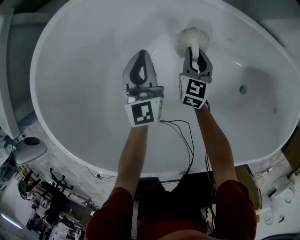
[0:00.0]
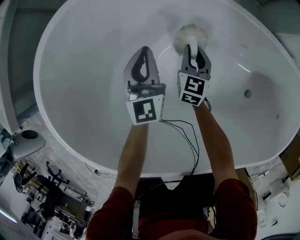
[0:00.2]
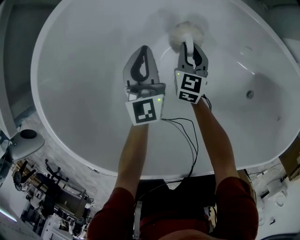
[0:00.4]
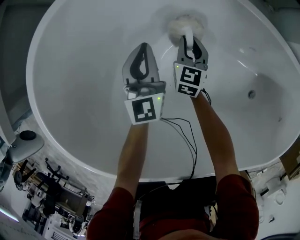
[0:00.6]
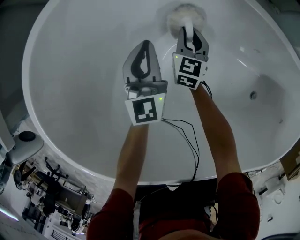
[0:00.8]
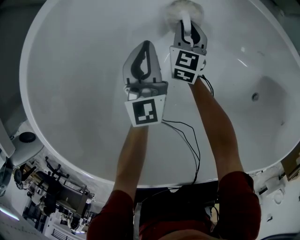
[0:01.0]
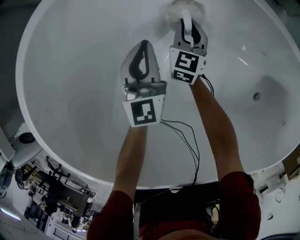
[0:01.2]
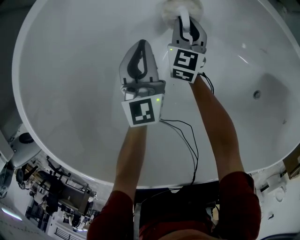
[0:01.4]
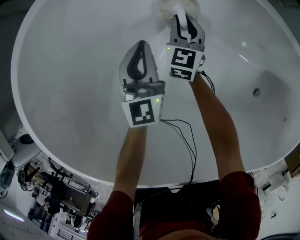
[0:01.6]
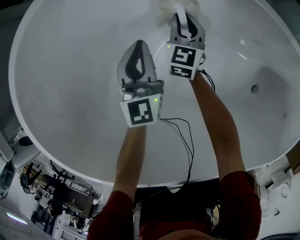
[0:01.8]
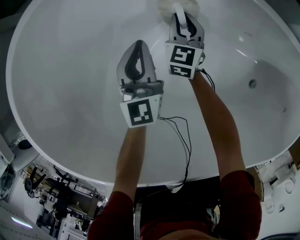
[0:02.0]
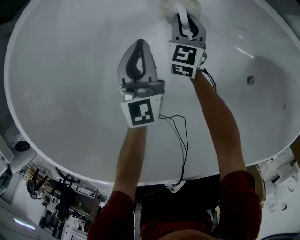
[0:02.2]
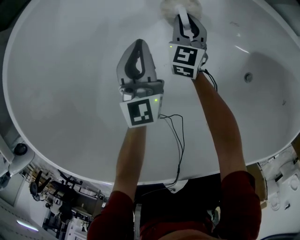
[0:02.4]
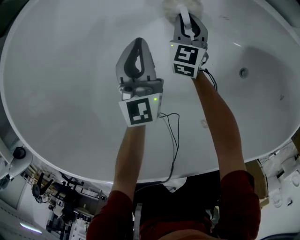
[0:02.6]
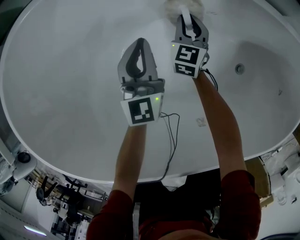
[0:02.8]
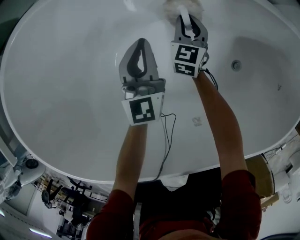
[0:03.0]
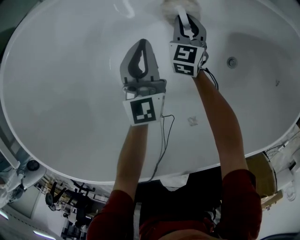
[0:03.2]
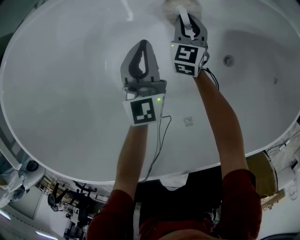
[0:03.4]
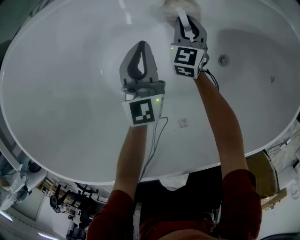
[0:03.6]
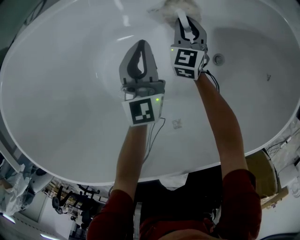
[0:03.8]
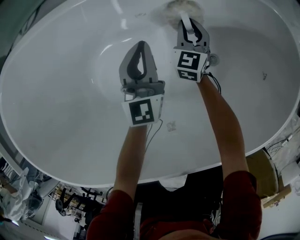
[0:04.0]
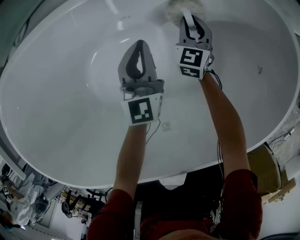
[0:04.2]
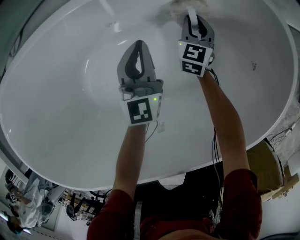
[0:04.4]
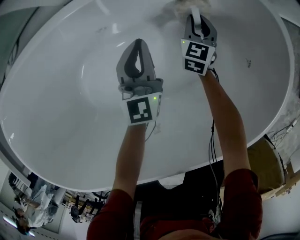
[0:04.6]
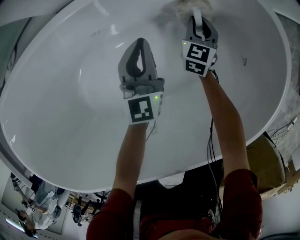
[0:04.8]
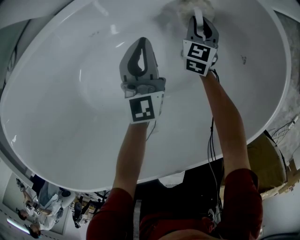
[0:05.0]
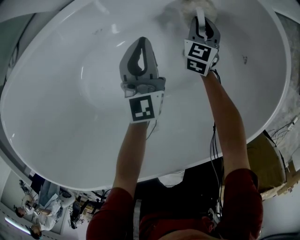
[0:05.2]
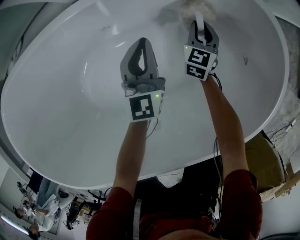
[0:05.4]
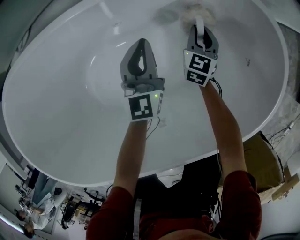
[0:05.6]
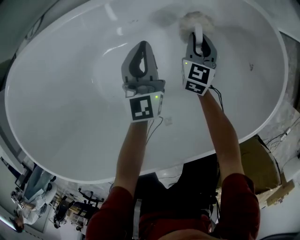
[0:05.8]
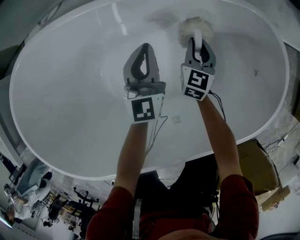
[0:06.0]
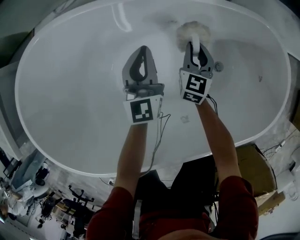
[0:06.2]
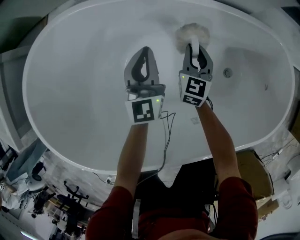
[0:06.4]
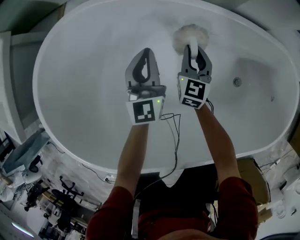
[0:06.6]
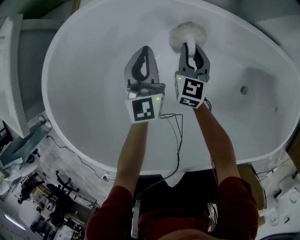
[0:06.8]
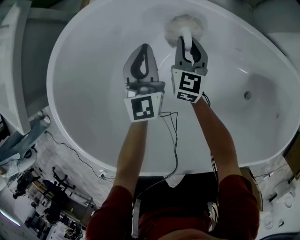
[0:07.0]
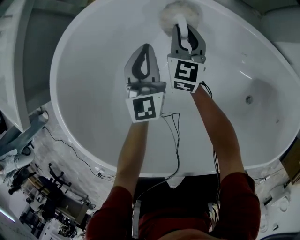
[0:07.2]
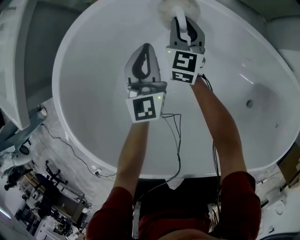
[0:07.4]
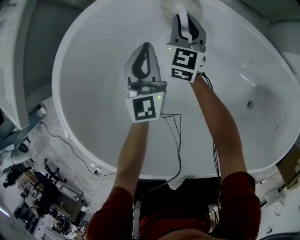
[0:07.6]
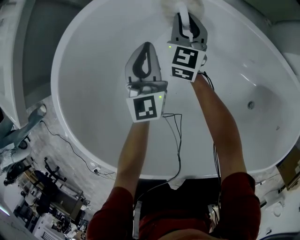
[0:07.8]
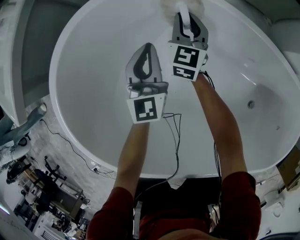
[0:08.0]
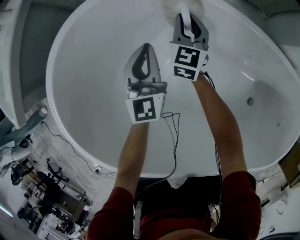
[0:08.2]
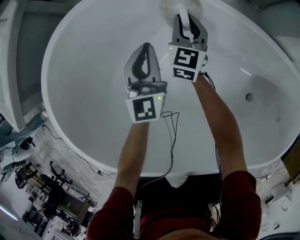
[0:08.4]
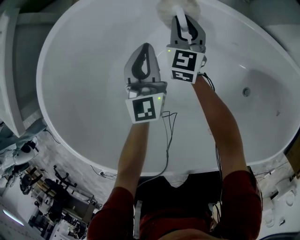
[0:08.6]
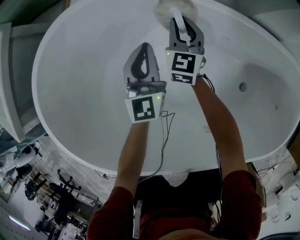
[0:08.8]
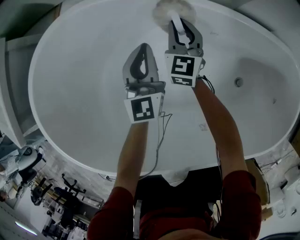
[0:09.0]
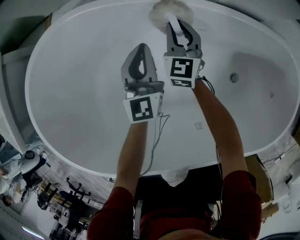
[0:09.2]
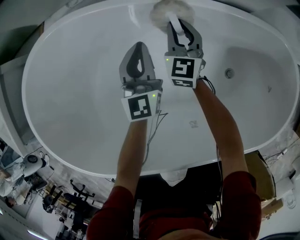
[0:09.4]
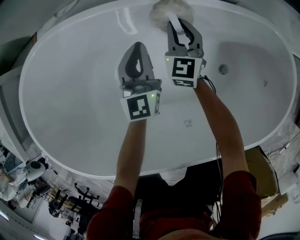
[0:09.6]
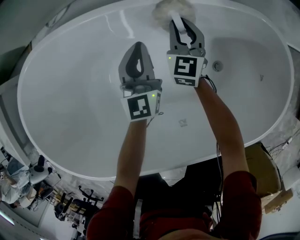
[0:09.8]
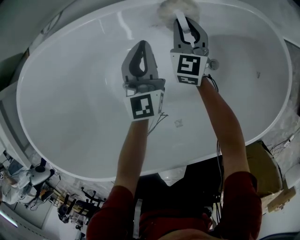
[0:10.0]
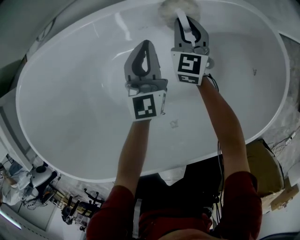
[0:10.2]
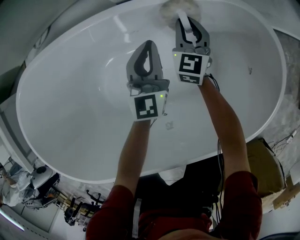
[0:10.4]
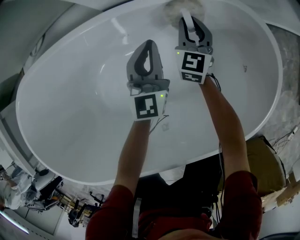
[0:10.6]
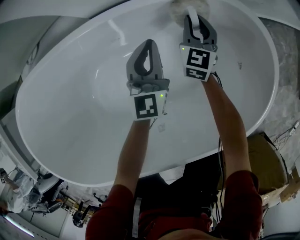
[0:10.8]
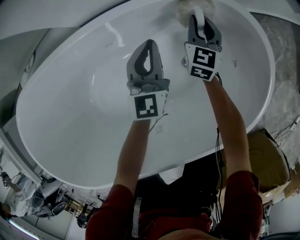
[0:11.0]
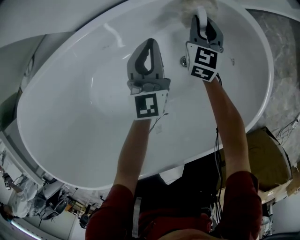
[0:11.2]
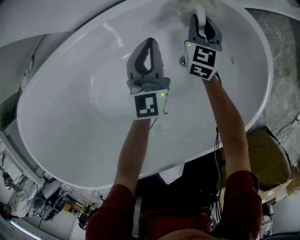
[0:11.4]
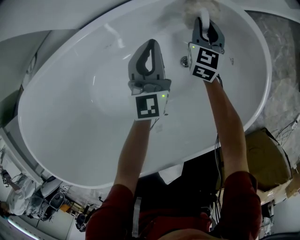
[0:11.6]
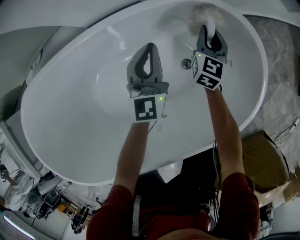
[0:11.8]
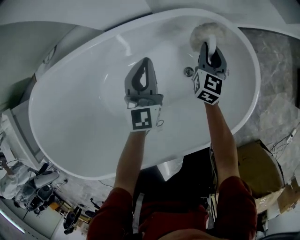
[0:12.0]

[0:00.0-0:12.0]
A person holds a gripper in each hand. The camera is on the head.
0.0 to 1.6 s: The right gripper shifts about 20 cm to the left, forward and downward. Meanwhile the left gripper travels downward and to the left by about 10 cm.
1.6 to 3.0 s: The grippers both shift to the right by some 30 cm.
3.0 to 4.4 s: The two grippers go about 30 cm to the right.
4.4 to 6.0 s: The left gripper travels to the left, upward and backward by about 20 cm. The right gripper shifts some 20 cm upward, to the left and backward.
6.0 to 7.6 s: The two grippers travel together, some 50 cm. The left gripper changes its angle by about 30 degrees, while the right gripper swivels about 30 degrees.
7.6 to 9.0 s: The two grippers go approximately 25 cm to the right.
9.0 to 10.4 s: The two grippers go some 40 cm to the right.
10.4 to 12.0 s: The right gripper travels to the right by about 20 cm, and rotates about 20 degrees. Meanwhile the left gripper travels to the right and upward by about 15 cm.

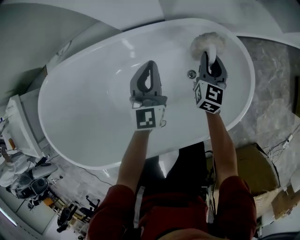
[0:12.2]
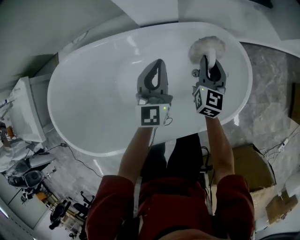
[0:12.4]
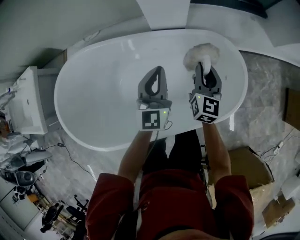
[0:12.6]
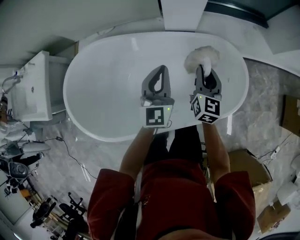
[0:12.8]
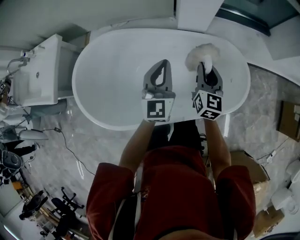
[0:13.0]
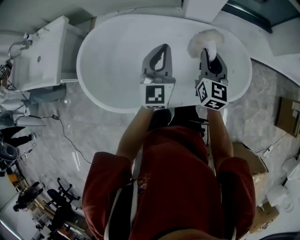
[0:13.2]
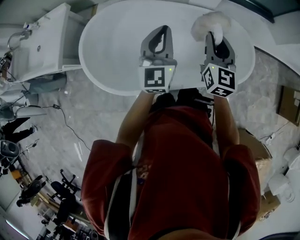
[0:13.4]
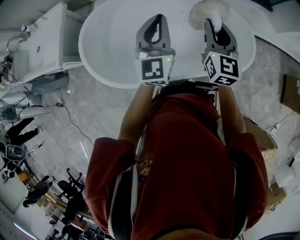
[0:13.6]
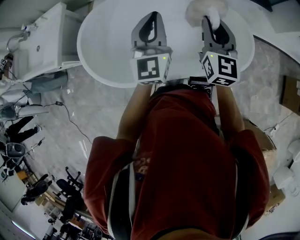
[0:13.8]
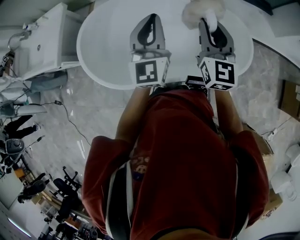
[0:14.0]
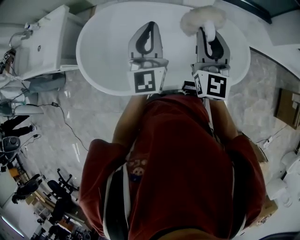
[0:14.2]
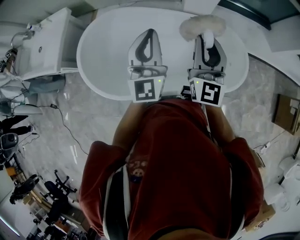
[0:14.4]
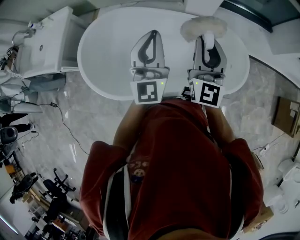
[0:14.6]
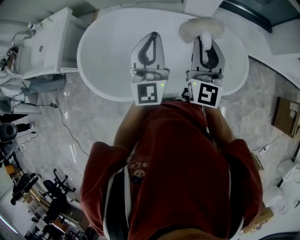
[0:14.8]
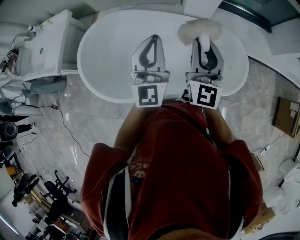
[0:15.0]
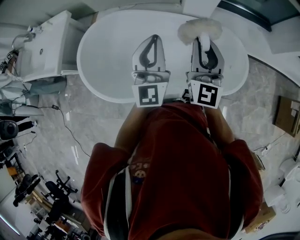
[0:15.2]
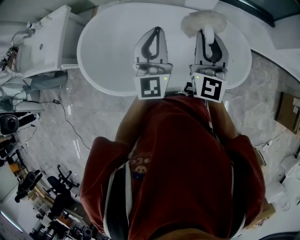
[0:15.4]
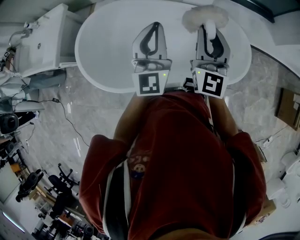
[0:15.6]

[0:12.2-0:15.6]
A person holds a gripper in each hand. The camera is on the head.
12.2 to 13.8 s: Both grippers are carried backward and to the left, approximately 40 cm. The two grippers go approximately 40 cm upward. The right gripper turns by about 30 degrees.
13.8 to 15.6 s: There are only small adjustments of the grippers.

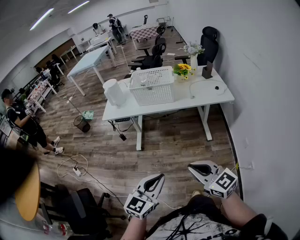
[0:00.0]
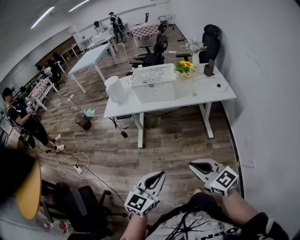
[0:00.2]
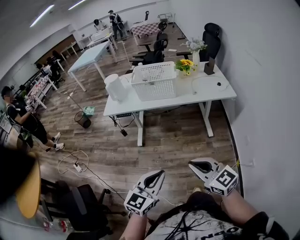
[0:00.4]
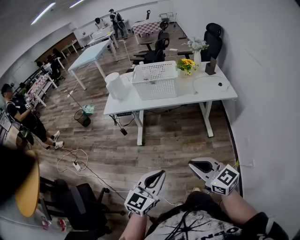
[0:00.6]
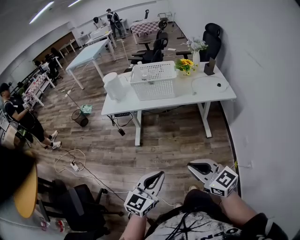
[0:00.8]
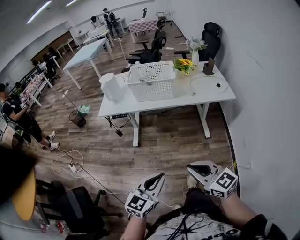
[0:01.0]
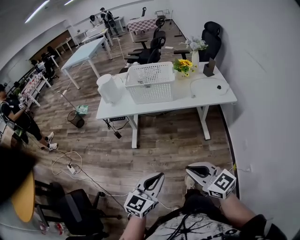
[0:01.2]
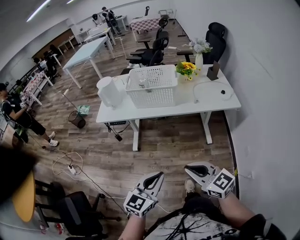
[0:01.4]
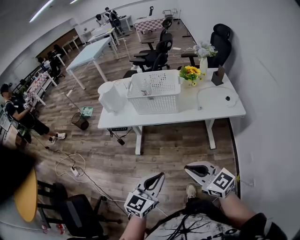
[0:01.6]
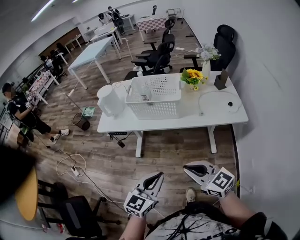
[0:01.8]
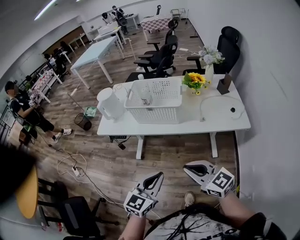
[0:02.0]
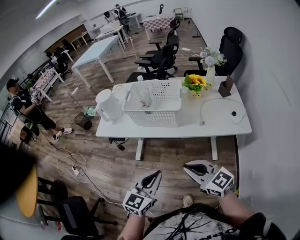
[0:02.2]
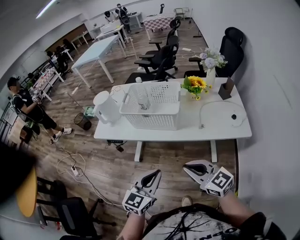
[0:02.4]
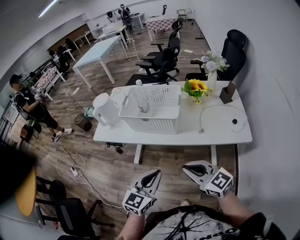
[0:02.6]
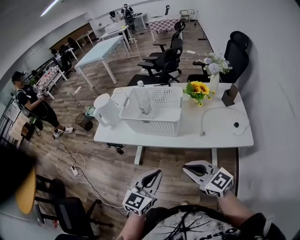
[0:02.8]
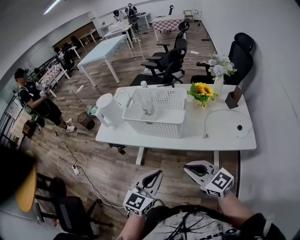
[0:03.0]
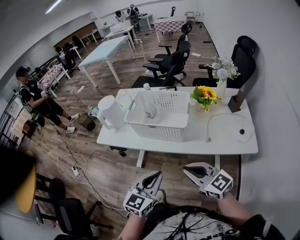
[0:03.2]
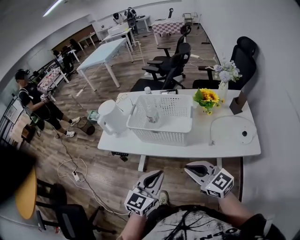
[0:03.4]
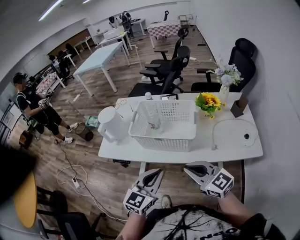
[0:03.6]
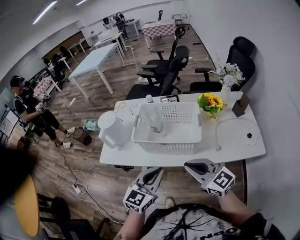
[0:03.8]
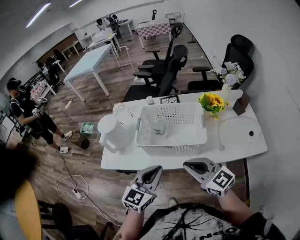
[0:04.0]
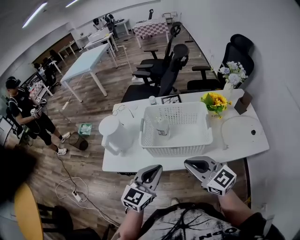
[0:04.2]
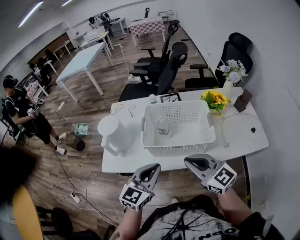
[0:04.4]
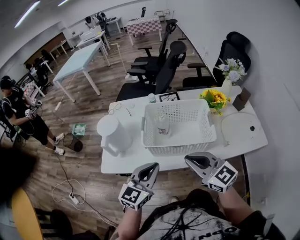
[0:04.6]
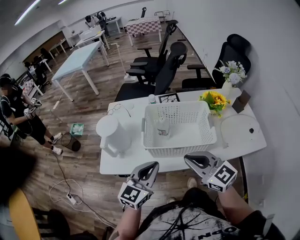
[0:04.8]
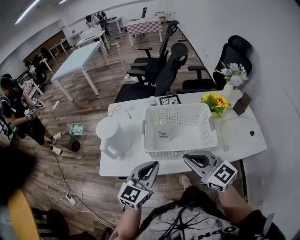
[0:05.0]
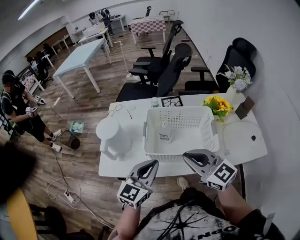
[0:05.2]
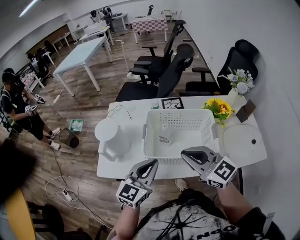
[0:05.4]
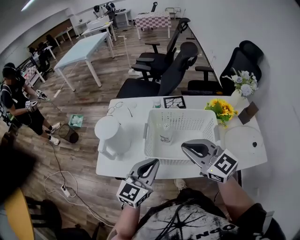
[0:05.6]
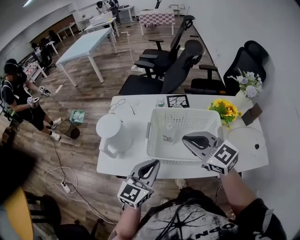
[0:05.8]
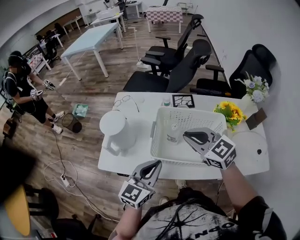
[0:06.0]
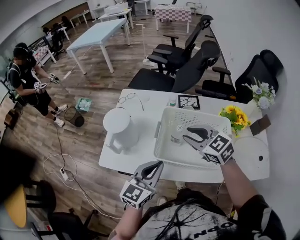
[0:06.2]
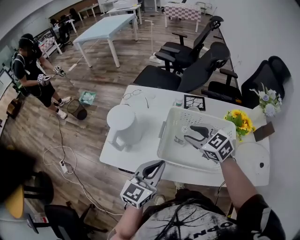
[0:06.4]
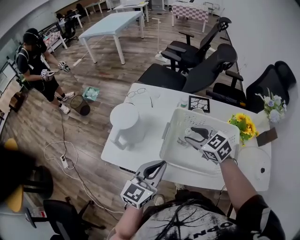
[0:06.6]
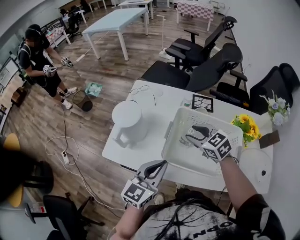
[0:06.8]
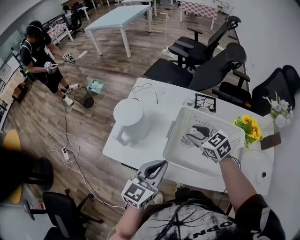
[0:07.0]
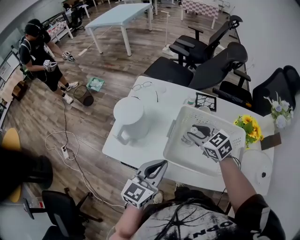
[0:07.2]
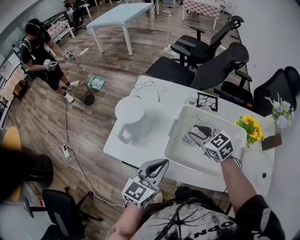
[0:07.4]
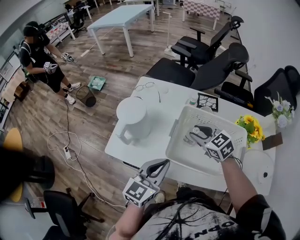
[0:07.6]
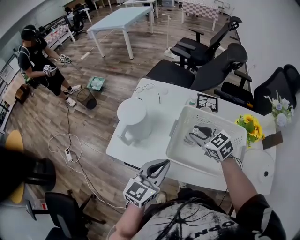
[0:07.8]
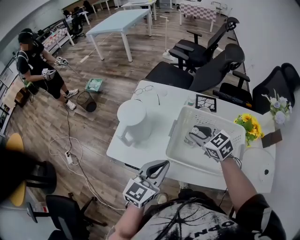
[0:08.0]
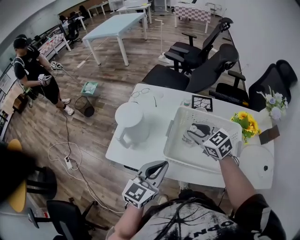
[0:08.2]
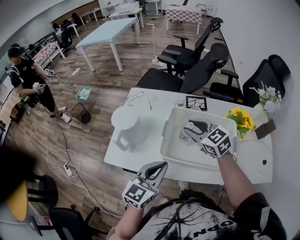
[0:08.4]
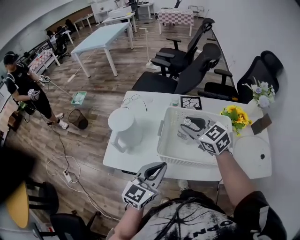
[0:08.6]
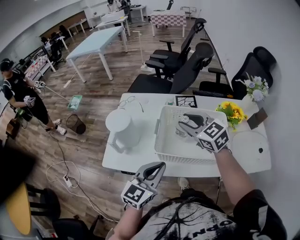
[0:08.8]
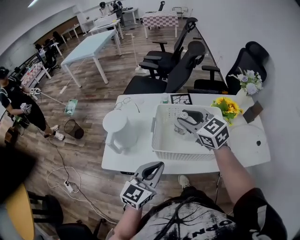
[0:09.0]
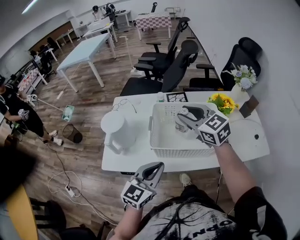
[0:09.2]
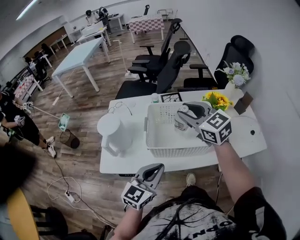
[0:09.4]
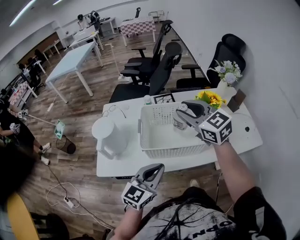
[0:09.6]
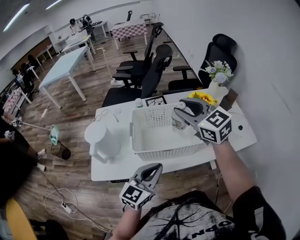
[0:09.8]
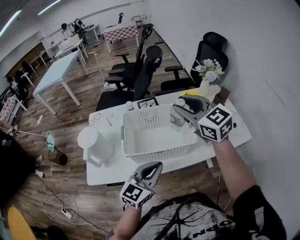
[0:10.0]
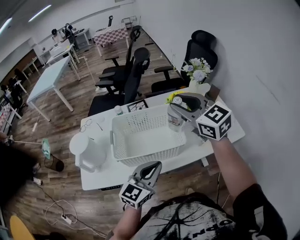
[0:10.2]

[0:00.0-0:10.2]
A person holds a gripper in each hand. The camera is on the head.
0.0 to 1.4 s: The grippers both shift forward by roughly 10 cm.
1.4 to 3.0 s: Both grippers travel together forward and to the right, some 25 cm.
3.0 to 4.4 s: The grippers both shift forward and to the left by some 25 cm.
4.4 to 5.8 s: The right gripper travels forward by about 15 cm; the left gripper heads forward, covering approximately 10 cm.
5.8 to 7.2 s: The right gripper travels downward and forward by approximately 20 cm, rotates roughly 20 degrees, and opens up.
7.2 to 8.8 s: The left gripper moves backward, approximately 5 cm. Meanwhile the right gripper moves upward, some 10 cm.
8.8 to 10.2 s: The right gripper moves to the right and upward, roughly 25 cm, and changes its angle by some 20 degrees. The left gripper shifts roughly 15 cm to the right, and rotates about 20 degrees.
